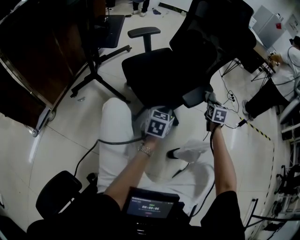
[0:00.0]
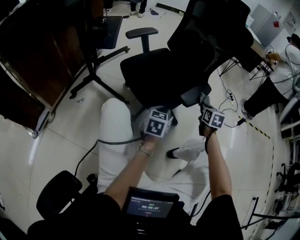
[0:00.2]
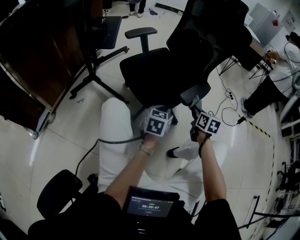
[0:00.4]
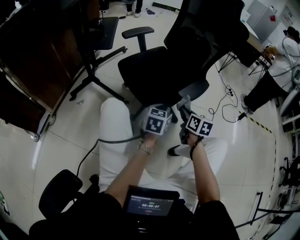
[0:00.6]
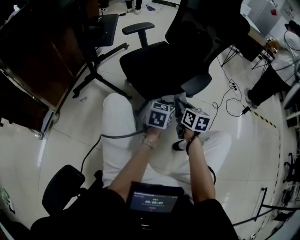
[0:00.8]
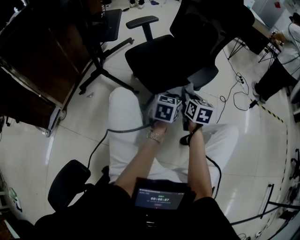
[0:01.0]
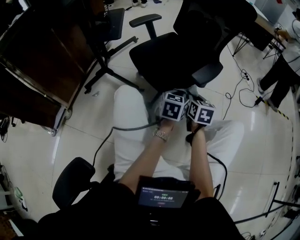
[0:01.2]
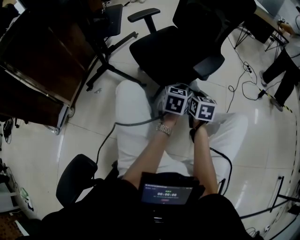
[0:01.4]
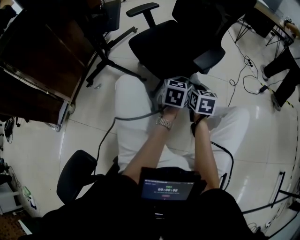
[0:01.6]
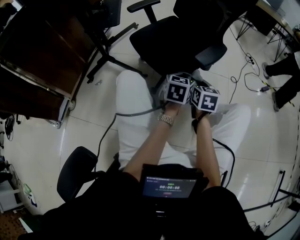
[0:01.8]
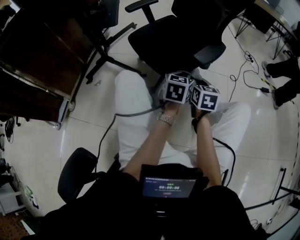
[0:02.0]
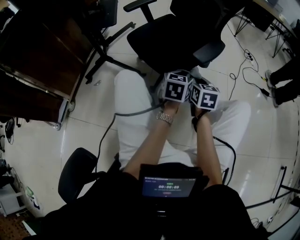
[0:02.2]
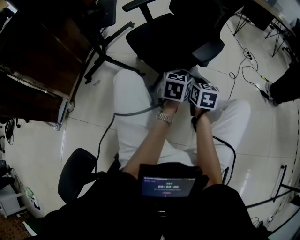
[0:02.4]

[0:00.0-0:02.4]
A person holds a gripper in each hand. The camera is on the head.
0.0 to 1.2 s: The right gripper goes roughly 20 cm to the left and backward, and turns by approximately 20 degrees.
1.2 to 2.4 s: The two grippers keep their place.

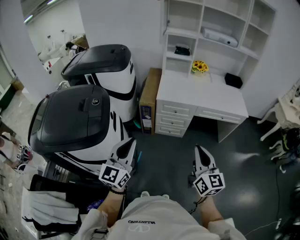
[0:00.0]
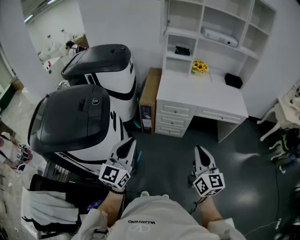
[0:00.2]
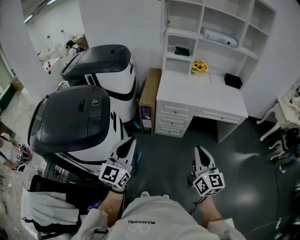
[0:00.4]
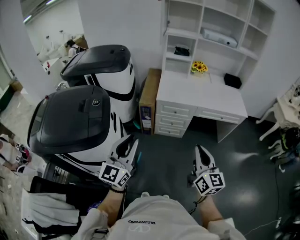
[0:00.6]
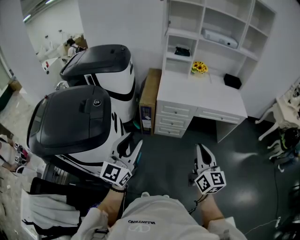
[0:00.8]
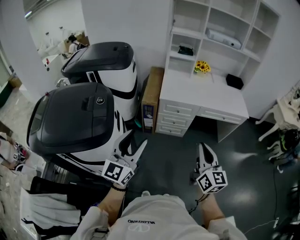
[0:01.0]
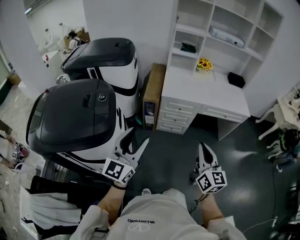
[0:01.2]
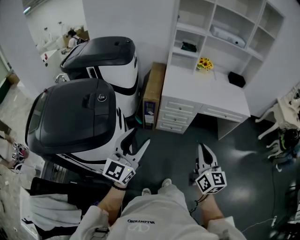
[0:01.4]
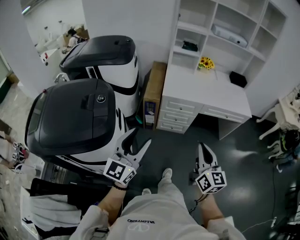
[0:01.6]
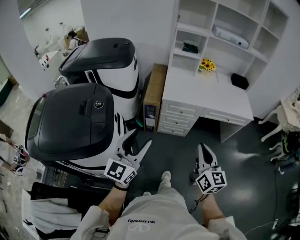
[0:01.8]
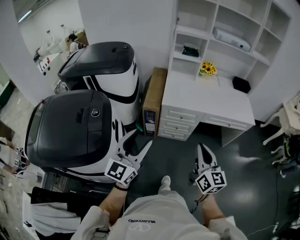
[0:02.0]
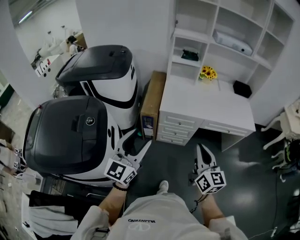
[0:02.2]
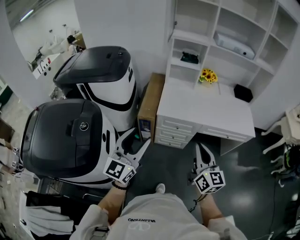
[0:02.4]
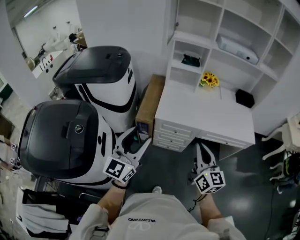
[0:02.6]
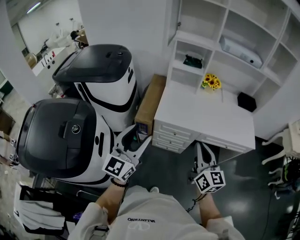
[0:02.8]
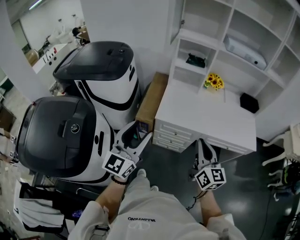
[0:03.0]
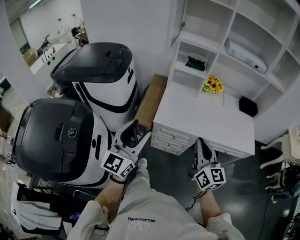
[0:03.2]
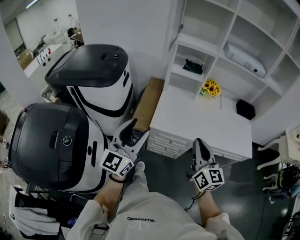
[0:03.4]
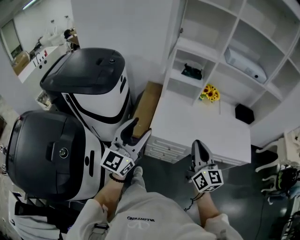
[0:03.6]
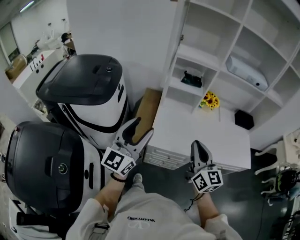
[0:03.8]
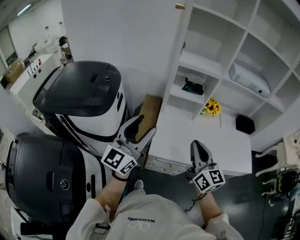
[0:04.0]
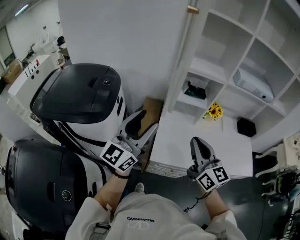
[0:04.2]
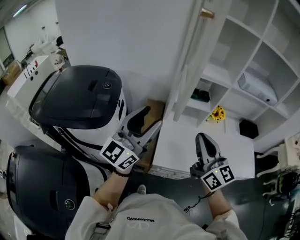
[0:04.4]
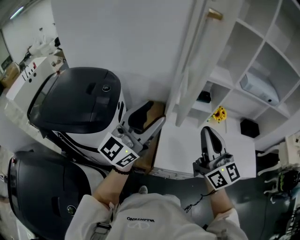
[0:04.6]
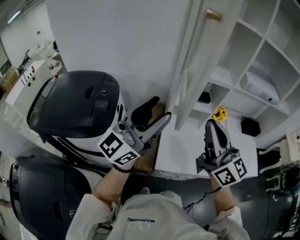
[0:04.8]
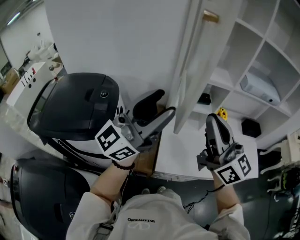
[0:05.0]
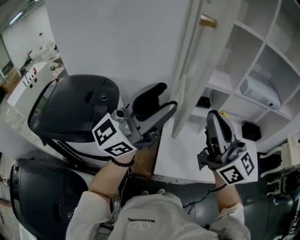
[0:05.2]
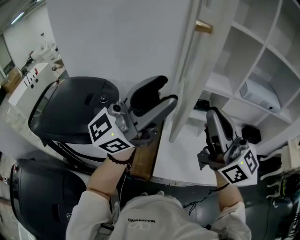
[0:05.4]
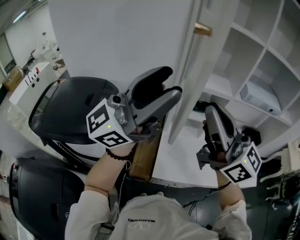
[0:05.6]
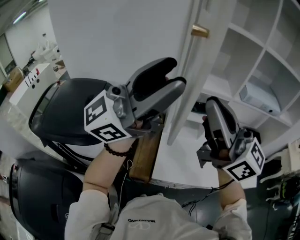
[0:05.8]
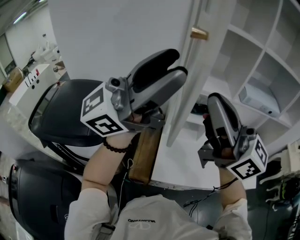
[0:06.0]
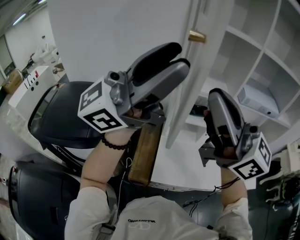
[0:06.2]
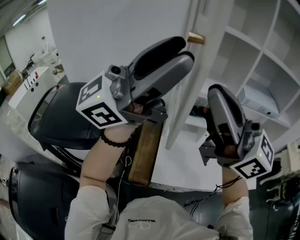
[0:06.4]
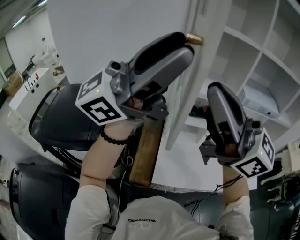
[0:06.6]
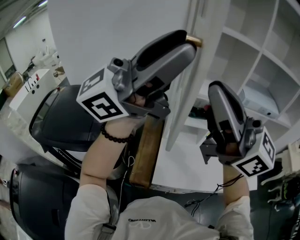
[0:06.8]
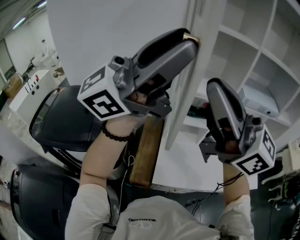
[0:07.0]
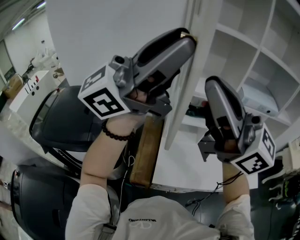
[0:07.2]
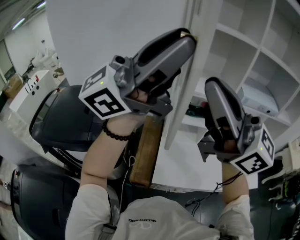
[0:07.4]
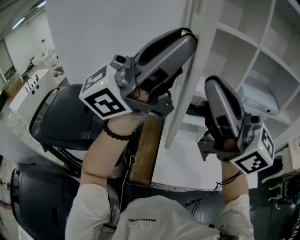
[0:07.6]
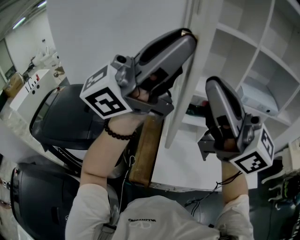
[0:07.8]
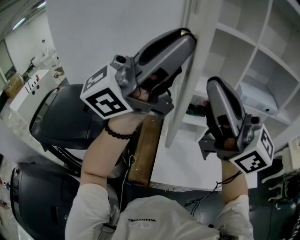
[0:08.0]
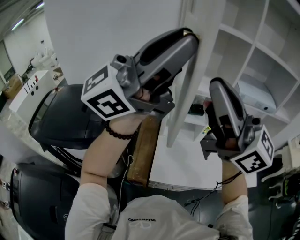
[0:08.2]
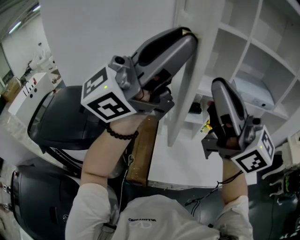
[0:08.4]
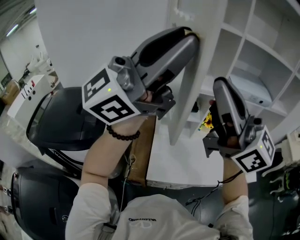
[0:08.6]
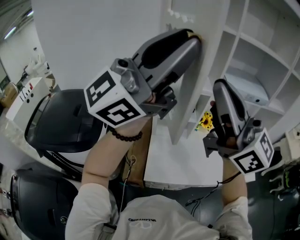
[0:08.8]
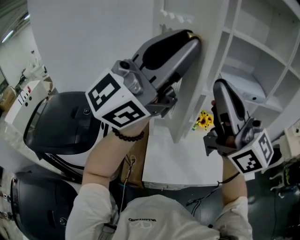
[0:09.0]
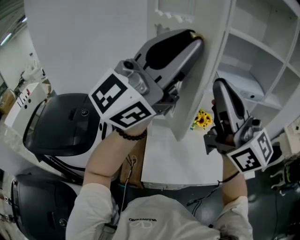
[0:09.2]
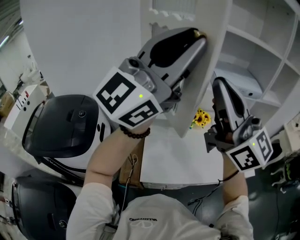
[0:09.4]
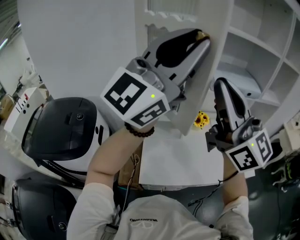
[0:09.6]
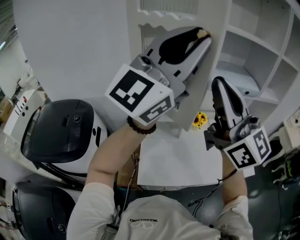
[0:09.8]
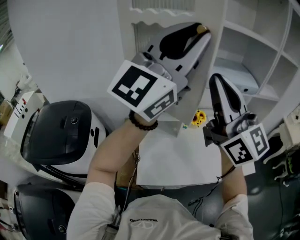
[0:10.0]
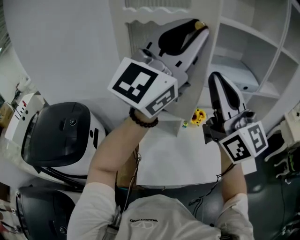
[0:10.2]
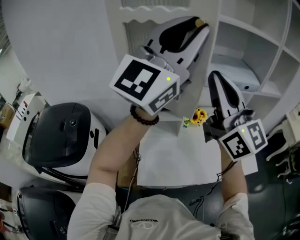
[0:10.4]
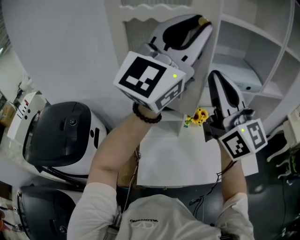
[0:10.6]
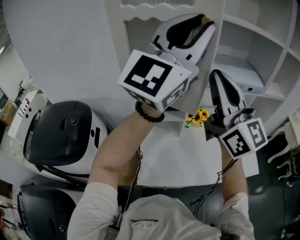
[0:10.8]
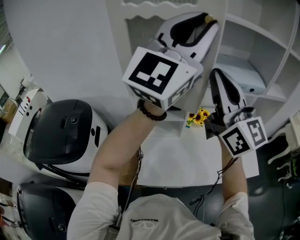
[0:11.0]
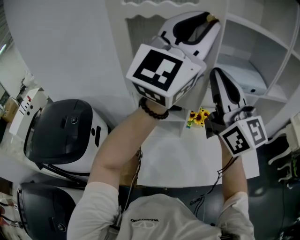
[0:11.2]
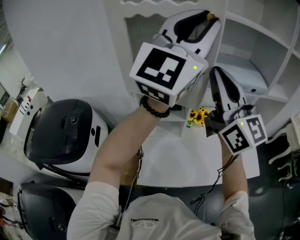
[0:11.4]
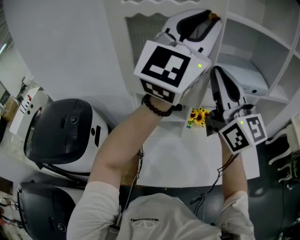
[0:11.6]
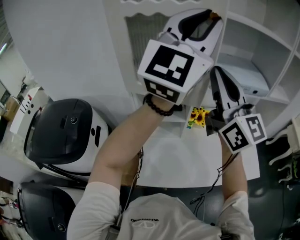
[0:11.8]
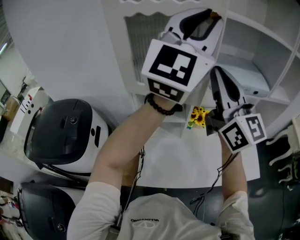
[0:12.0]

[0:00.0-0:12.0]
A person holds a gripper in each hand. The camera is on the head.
0.0 to 1.6 s: The right gripper shifts approximately 5 cm to the left. Meanwhile the left gripper changes place by roughly 5 cm, and opens its fingers.
1.6 to 3.0 s: Both grippers move forward, approximately 30 cm.
3.0 to 4.4 s: The right gripper travels forward and to the left by roughly 30 cm; the left gripper moves forward, approximately 35 cm, and swivels some 20 degrees.
4.4 to 6.0 s: Both grippers travel together upward, roughly 25 cm. The left gripper changes its angle by some 40 degrees. Meanwhile the right gripper turns by some 30 degrees.
6.0 to 7.6 s: Both grippers travel together upward, approximately 5 cm. The left gripper closes.
7.6 to 9.0 s: The left gripper shifts by approximately 10 cm; the right gripper moves approximately 10 cm.
9.0 to 10.4 s: Both grippers move forward and to the right, about 15 cm.
10.4 to 12.0 s: The two grippers go some 5 cm forward.

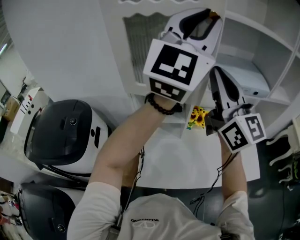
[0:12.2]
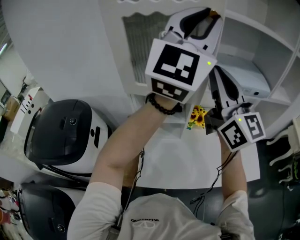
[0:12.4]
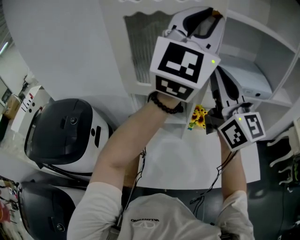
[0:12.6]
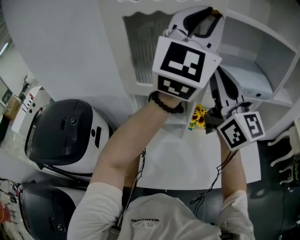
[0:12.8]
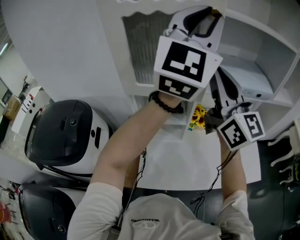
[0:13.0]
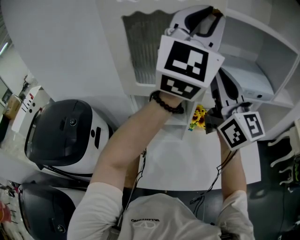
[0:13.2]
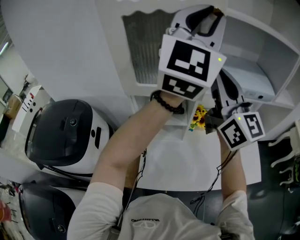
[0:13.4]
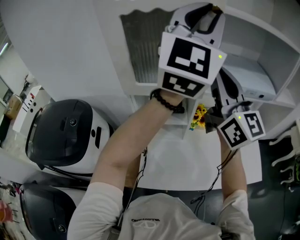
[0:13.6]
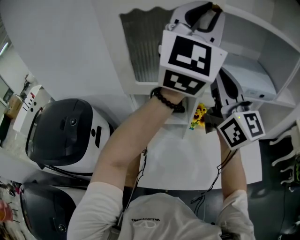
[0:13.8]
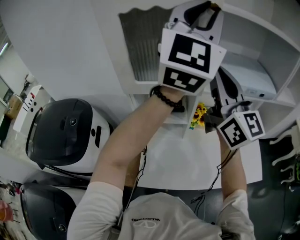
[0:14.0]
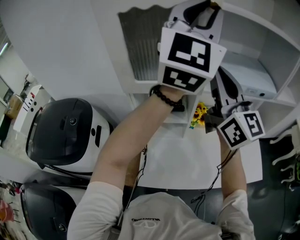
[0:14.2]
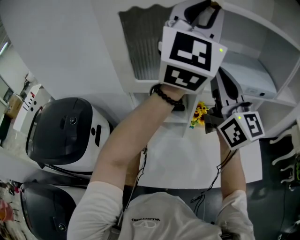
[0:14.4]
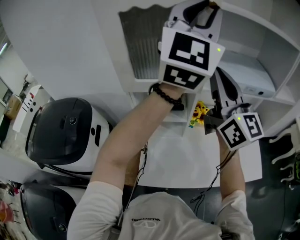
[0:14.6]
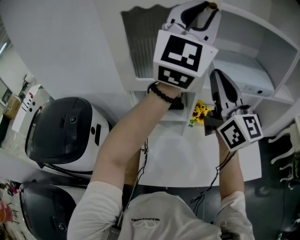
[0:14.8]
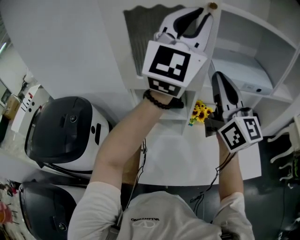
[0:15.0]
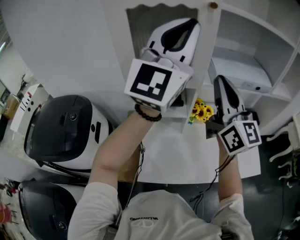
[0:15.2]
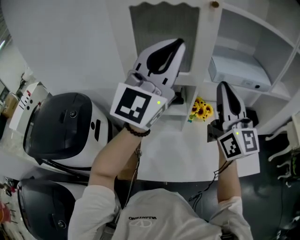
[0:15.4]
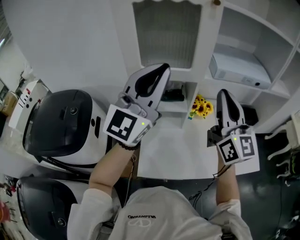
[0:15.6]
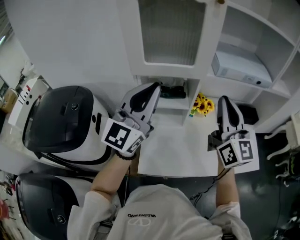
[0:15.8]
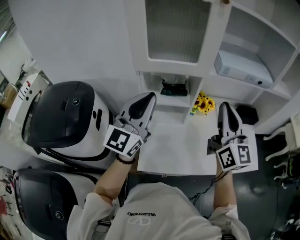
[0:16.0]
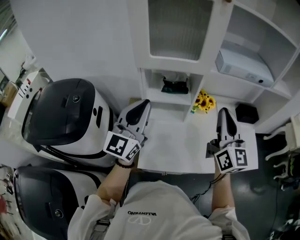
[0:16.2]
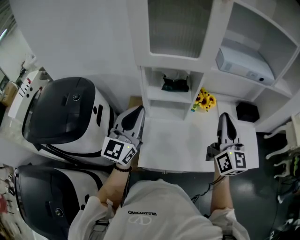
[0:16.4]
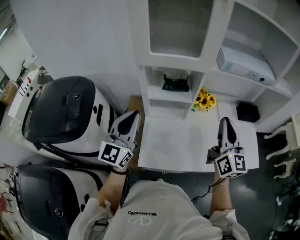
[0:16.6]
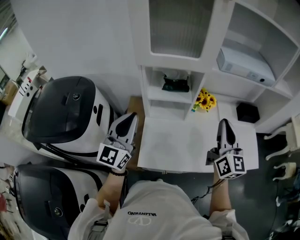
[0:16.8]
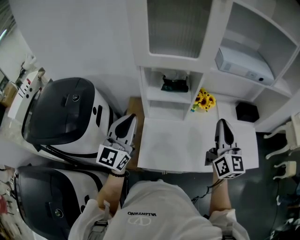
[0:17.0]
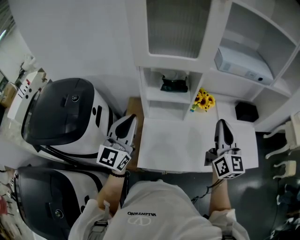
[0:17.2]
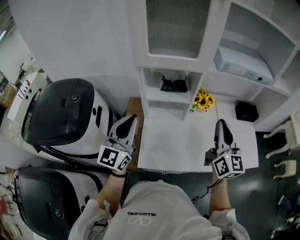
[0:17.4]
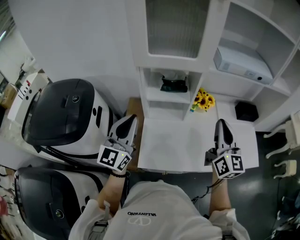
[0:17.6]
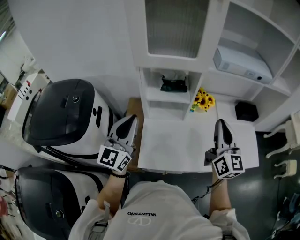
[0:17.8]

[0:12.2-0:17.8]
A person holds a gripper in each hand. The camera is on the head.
12.2 to 15.0 s: The grippers make only small movements.
15.0 to 16.4 s: The right gripper moves downward and backward, about 20 cm; the left gripper is displaced downward, to the left and backward by some 40 cm, and swivels some 30 degrees.
16.4 to 17.8 s: The grippers move only a little.

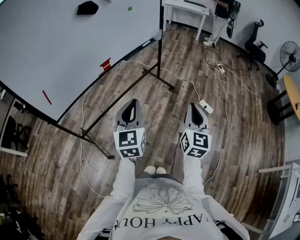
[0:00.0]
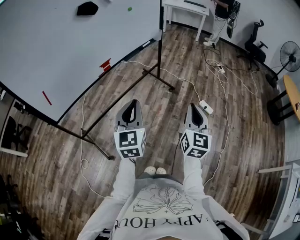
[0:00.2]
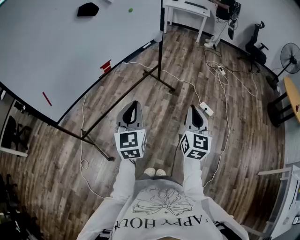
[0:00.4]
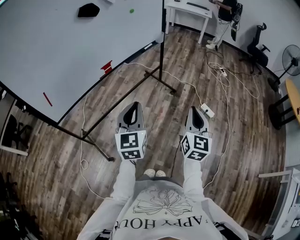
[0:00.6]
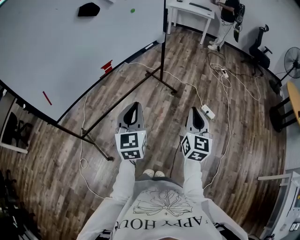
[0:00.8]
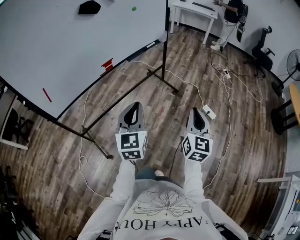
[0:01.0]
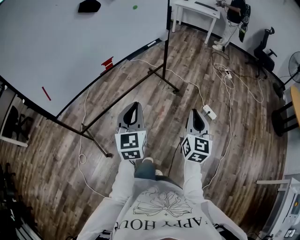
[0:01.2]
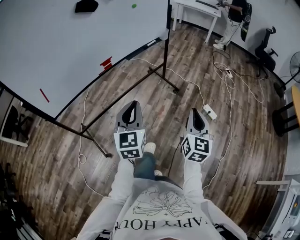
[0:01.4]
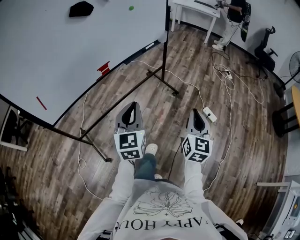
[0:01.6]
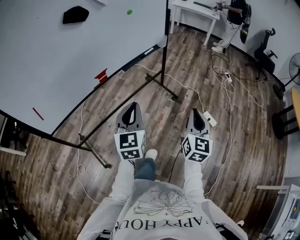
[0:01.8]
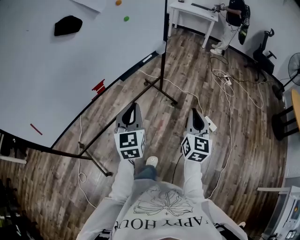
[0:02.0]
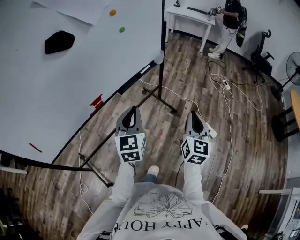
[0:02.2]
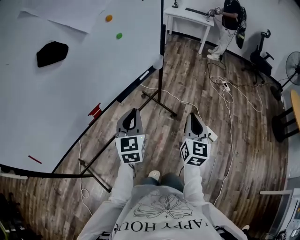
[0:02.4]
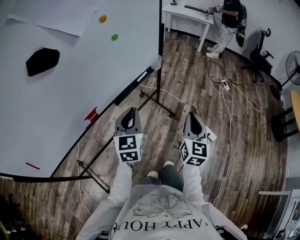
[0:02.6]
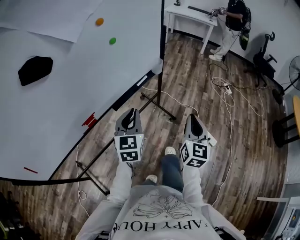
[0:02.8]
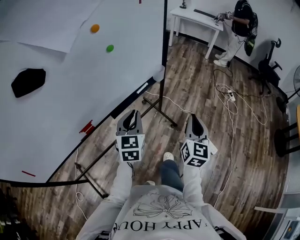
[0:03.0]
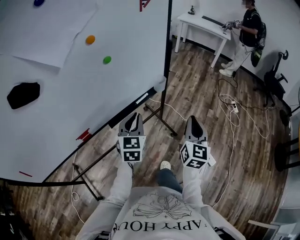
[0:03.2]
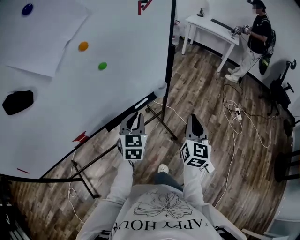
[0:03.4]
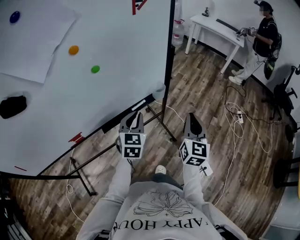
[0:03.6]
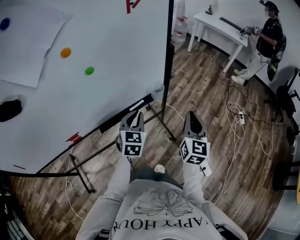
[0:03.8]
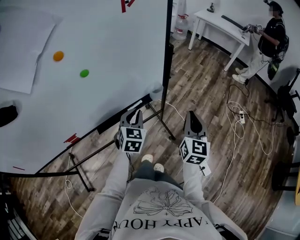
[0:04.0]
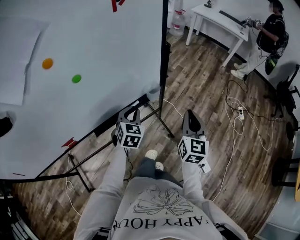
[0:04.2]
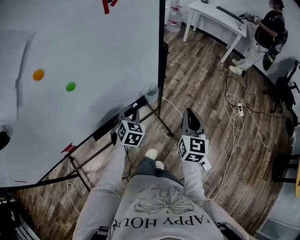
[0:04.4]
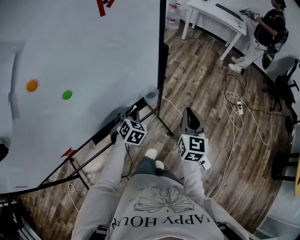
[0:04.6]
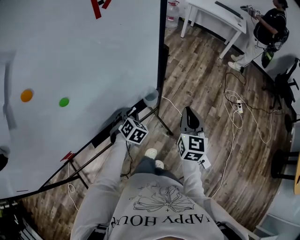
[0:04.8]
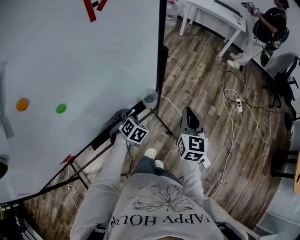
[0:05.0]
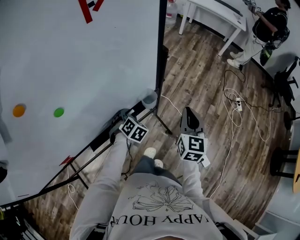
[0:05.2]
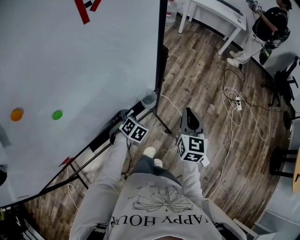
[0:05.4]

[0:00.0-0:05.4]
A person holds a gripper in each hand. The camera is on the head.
0.0 to 1.4 s: The right gripper is displaced forward by approximately 5 cm; the left gripper moves some 5 cm.
1.4 to 2.8 s: Both grippers travel together forward, roughly 40 cm.
2.8 to 4.0 s: The grippers both shift forward by roughly 25 cm. The left gripper changes its angle by some 20 degrees.
4.0 to 5.4 s: The right gripper is displaced forward by about 10 cm; the left gripper shifts some 20 cm downward and forward, tips its fingers downward by roughly 30 degrees, and opens.
